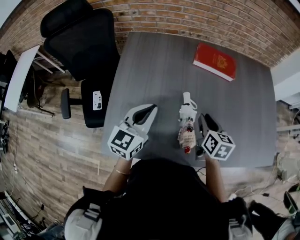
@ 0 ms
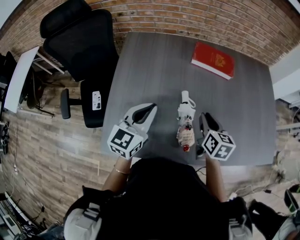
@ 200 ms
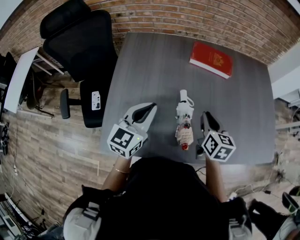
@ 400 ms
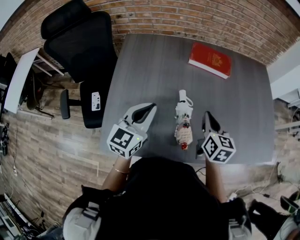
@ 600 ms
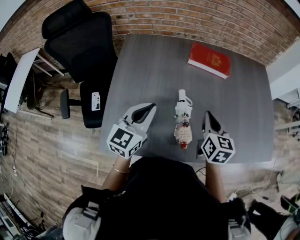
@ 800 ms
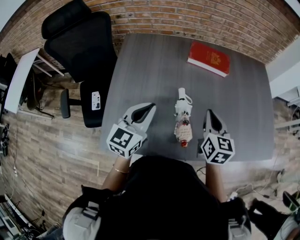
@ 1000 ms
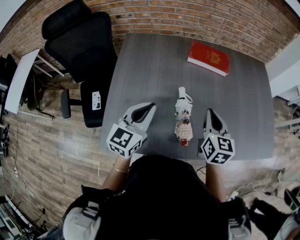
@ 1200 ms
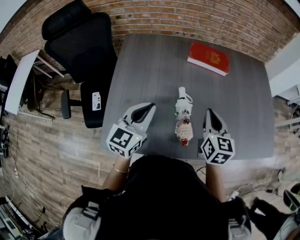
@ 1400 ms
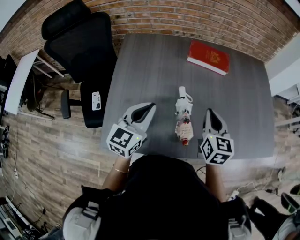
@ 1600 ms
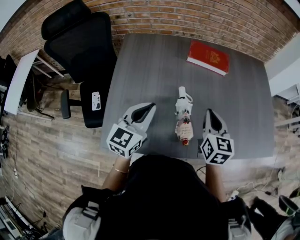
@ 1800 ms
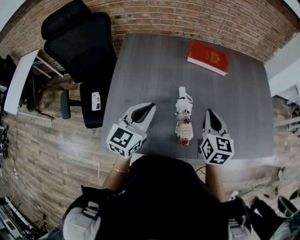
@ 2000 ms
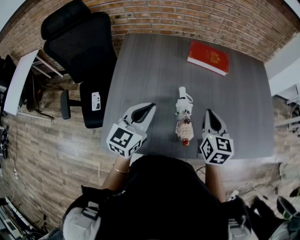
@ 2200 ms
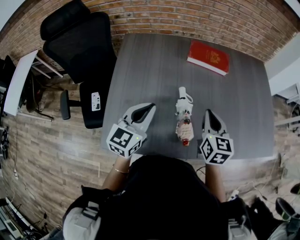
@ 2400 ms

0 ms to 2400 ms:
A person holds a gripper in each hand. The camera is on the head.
0 ms to 1200 ms: The right gripper heads upward, covering some 10 cm.
1200 ms to 2400 ms: Both grippers stay about where they are.

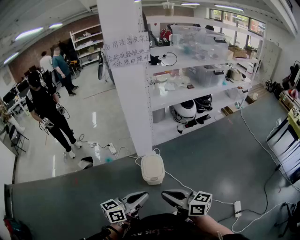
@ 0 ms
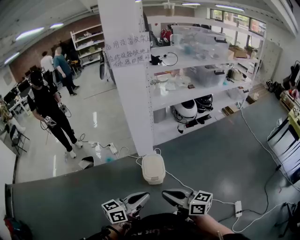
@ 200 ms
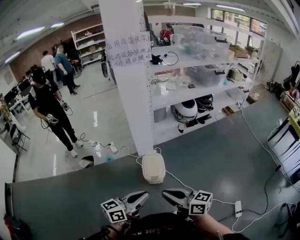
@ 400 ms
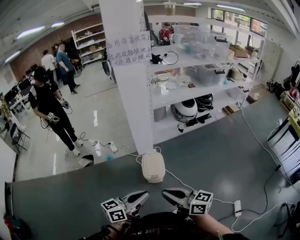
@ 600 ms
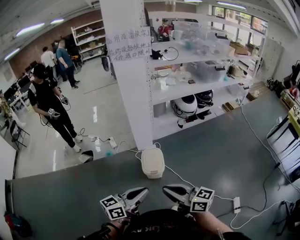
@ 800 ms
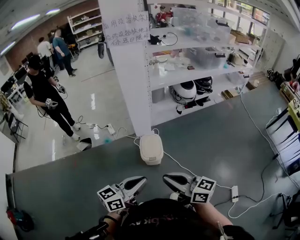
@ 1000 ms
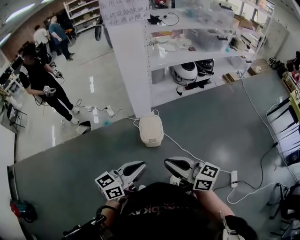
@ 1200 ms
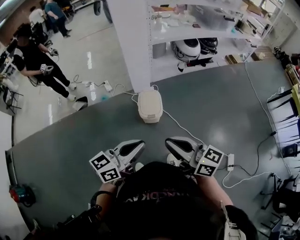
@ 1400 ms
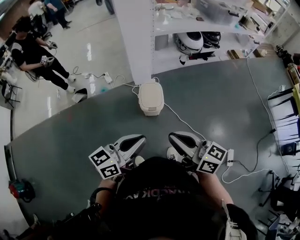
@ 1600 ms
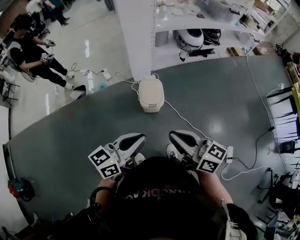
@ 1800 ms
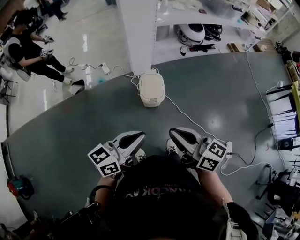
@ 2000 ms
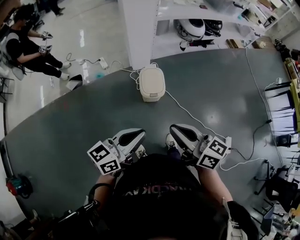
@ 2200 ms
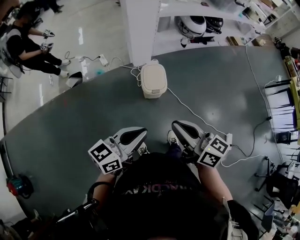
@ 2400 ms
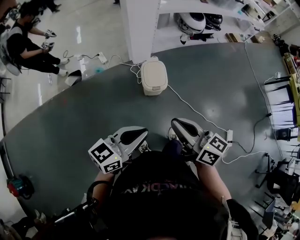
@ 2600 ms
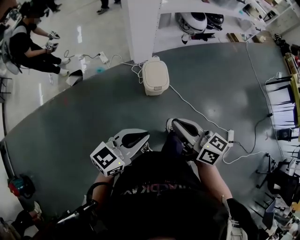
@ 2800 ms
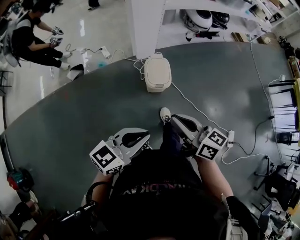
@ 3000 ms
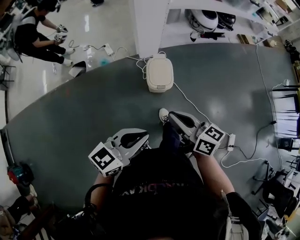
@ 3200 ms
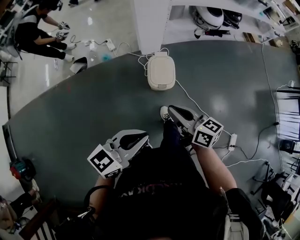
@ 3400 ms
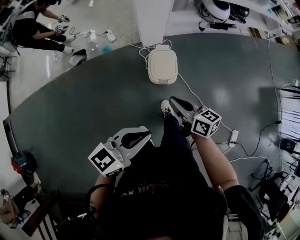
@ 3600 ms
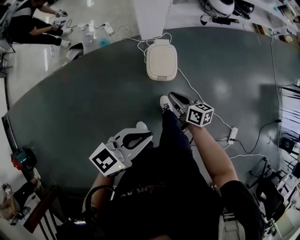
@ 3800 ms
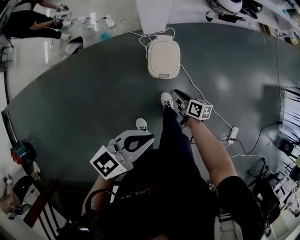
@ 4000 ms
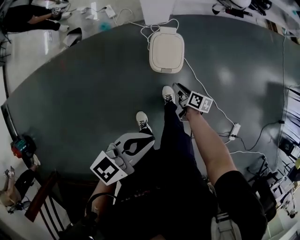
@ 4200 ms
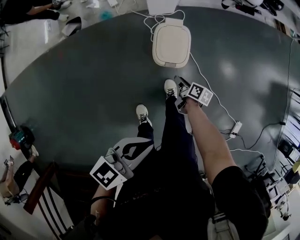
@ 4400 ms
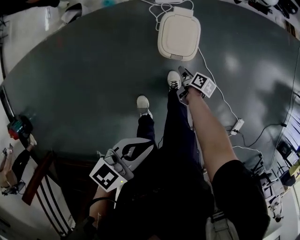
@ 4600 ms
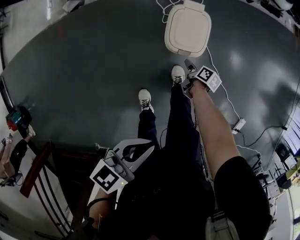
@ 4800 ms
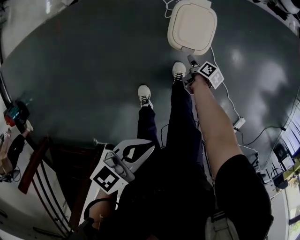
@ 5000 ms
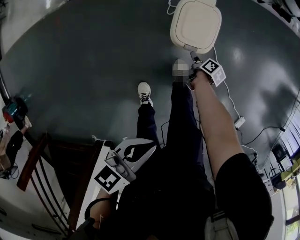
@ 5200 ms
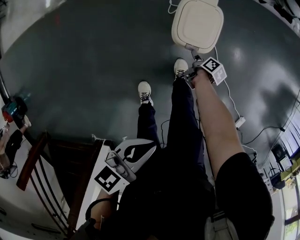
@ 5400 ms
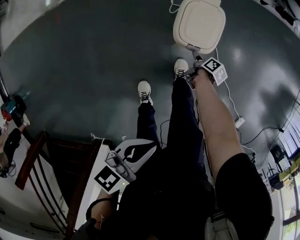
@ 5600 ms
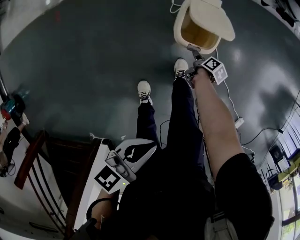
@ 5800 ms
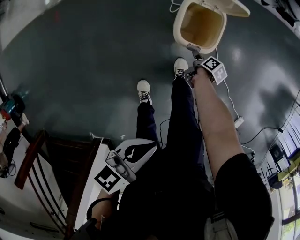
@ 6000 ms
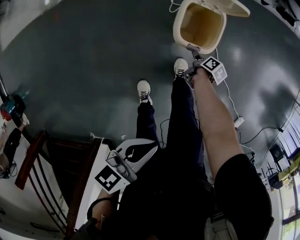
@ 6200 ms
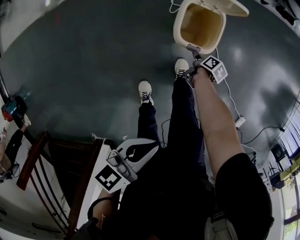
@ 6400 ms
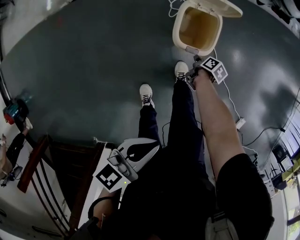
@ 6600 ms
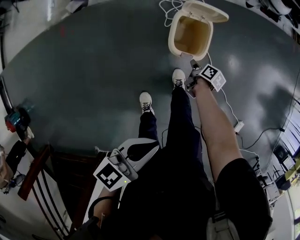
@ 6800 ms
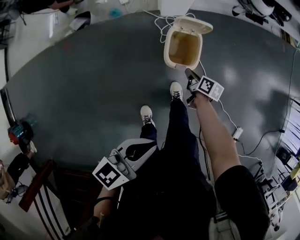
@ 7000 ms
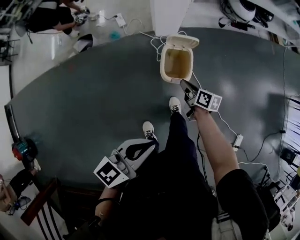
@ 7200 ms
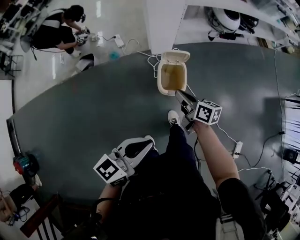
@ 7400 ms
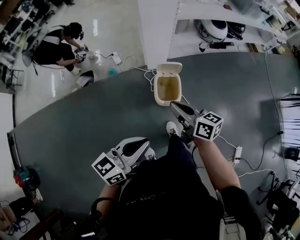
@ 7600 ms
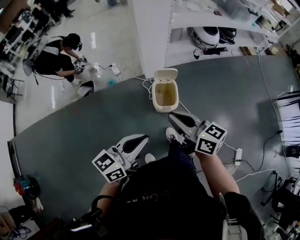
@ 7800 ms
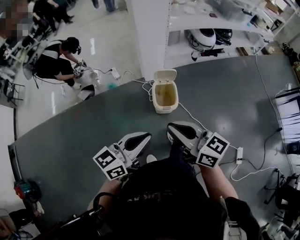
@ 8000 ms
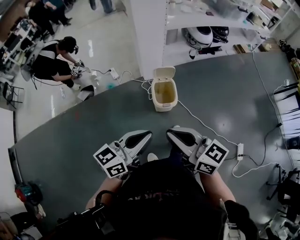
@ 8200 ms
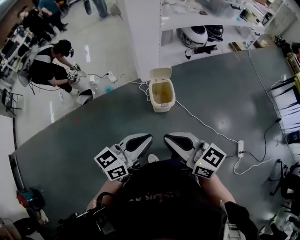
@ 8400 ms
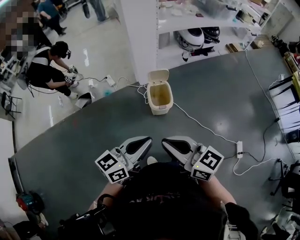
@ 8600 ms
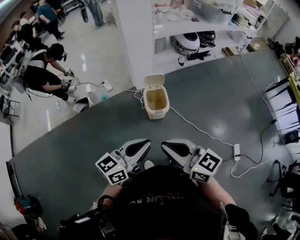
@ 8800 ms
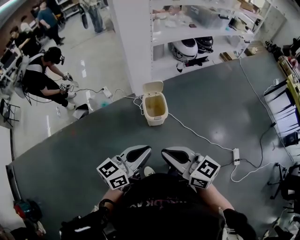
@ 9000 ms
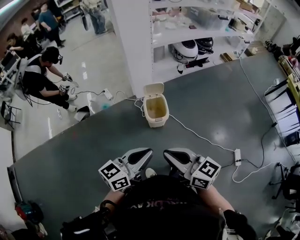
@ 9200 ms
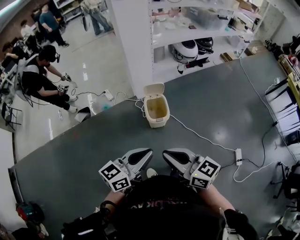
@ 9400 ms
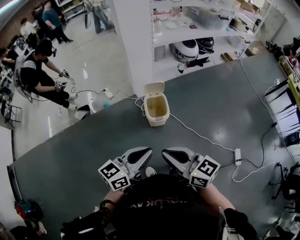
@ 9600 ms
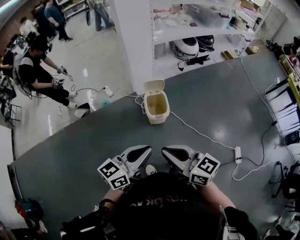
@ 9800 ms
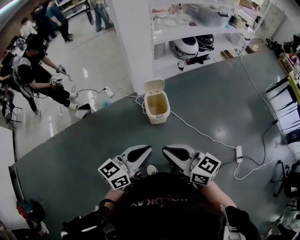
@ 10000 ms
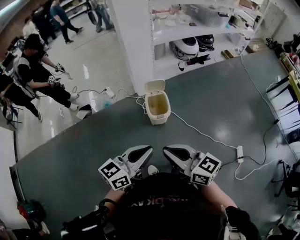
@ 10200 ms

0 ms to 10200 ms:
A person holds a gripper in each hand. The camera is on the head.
0 ms to 1400 ms: There are only small adjustments of the grippers.
1400 ms to 3000 ms: The two grippers go approximately 10 cm to the left and downward.
3000 ms to 4400 ms: The left gripper goes approximately 20 cm forward and downward, and swivels about 20 degrees, while the right gripper goes some 50 cm downward and forward, points its fingers roughly 40 degrees further downward, and opens.
4400 ms to 5800 ms: The left gripper shifts some 10 cm downward. Meanwhile the right gripper shifts about 15 cm downward, and rotates roughly 20 degrees.
5800 ms to 7200 ms: The right gripper is displaced upward by approximately 30 cm, angles its fingers upward, by about 30 degrees, and closes its fingers, while the left gripper heads upward, covering some 15 cm, and turns by about 20 degrees.
7200 ms to 8800 ms: The right gripper heads upward and backward, covering approximately 50 cm, and rolls counterclockwise, seen from behind, by some 40 degrees. Meanwhile the left gripper moves backward and upward, some 15 cm.
8800 ms to 10200 ms: The grippers make only small movements.

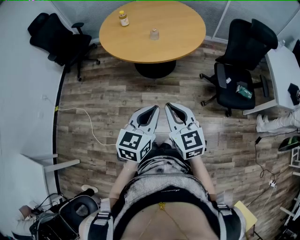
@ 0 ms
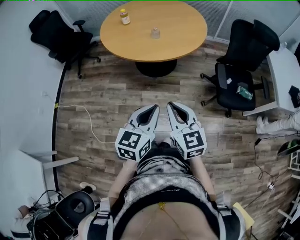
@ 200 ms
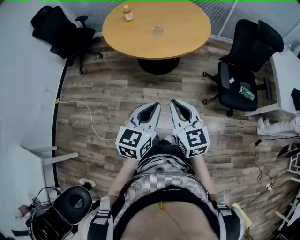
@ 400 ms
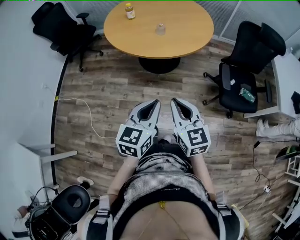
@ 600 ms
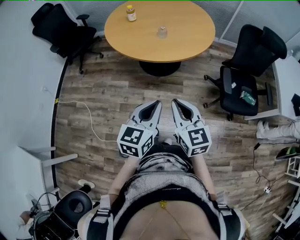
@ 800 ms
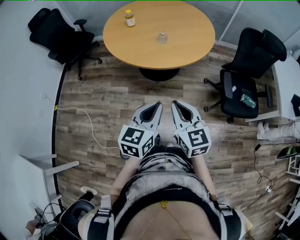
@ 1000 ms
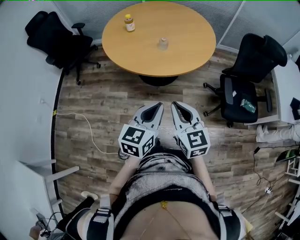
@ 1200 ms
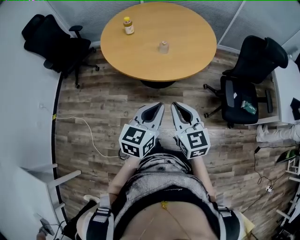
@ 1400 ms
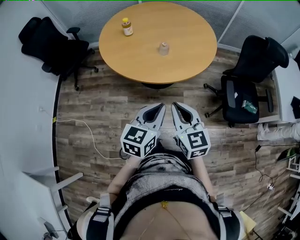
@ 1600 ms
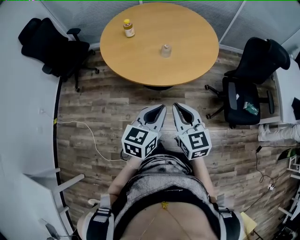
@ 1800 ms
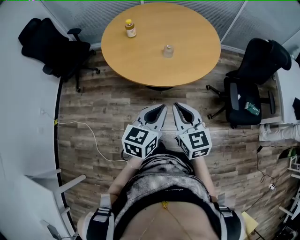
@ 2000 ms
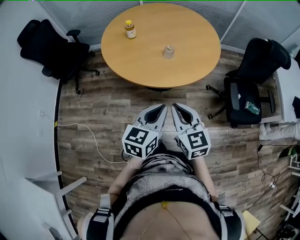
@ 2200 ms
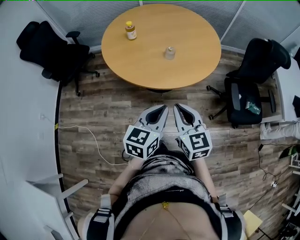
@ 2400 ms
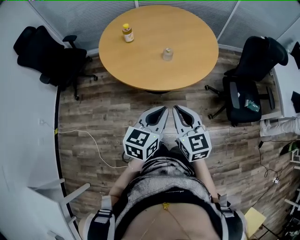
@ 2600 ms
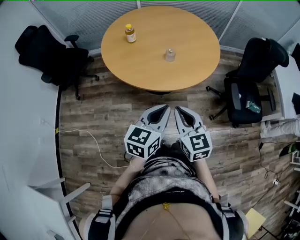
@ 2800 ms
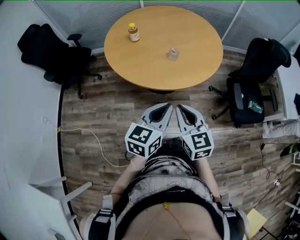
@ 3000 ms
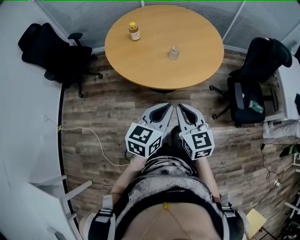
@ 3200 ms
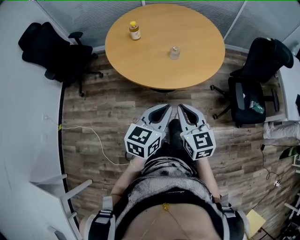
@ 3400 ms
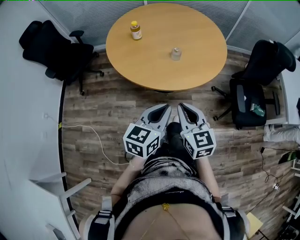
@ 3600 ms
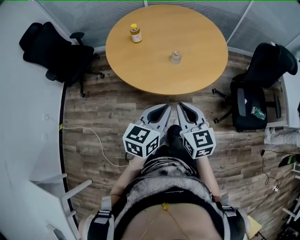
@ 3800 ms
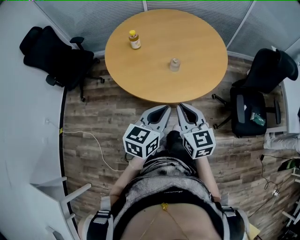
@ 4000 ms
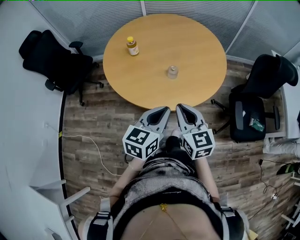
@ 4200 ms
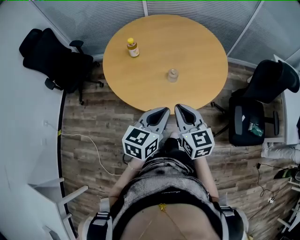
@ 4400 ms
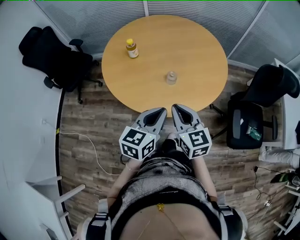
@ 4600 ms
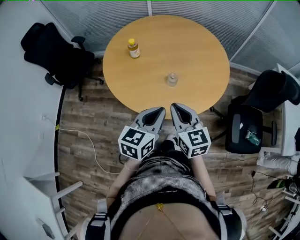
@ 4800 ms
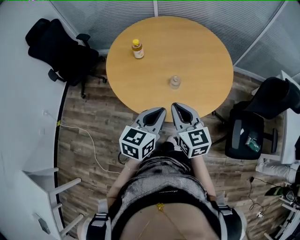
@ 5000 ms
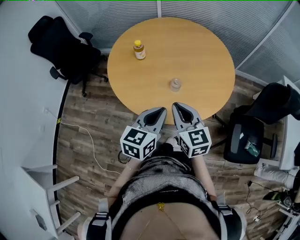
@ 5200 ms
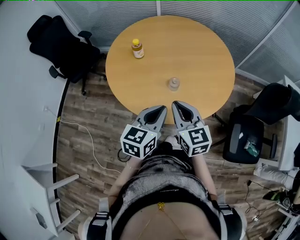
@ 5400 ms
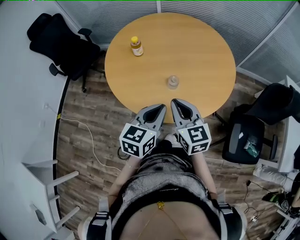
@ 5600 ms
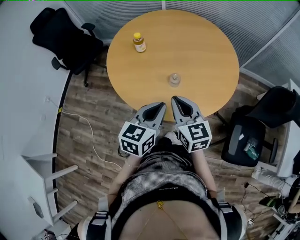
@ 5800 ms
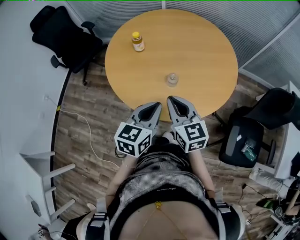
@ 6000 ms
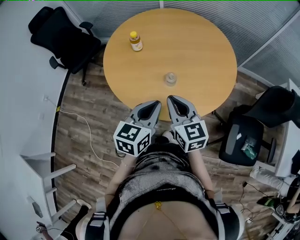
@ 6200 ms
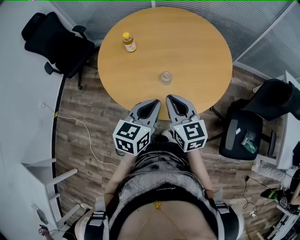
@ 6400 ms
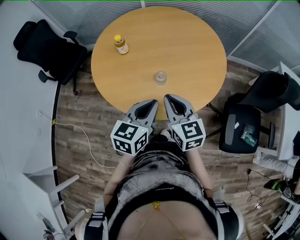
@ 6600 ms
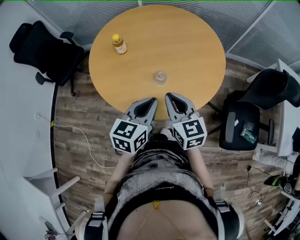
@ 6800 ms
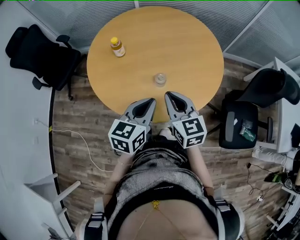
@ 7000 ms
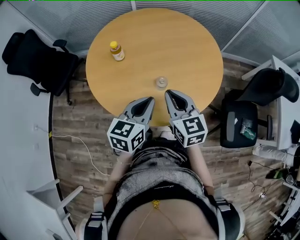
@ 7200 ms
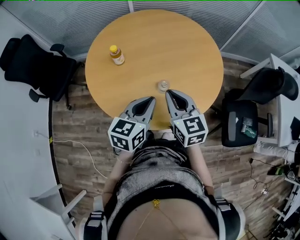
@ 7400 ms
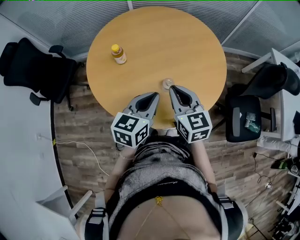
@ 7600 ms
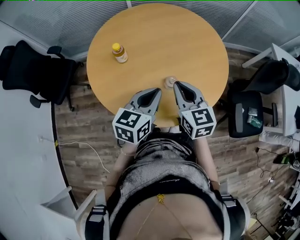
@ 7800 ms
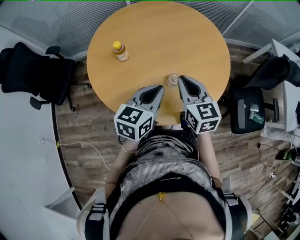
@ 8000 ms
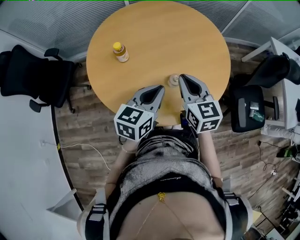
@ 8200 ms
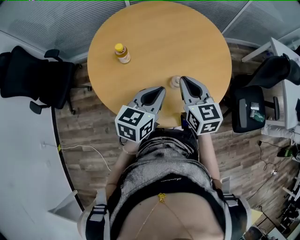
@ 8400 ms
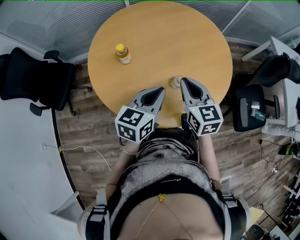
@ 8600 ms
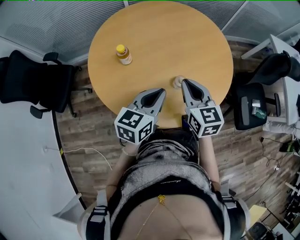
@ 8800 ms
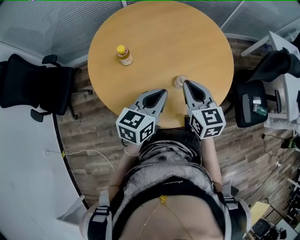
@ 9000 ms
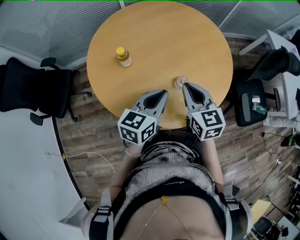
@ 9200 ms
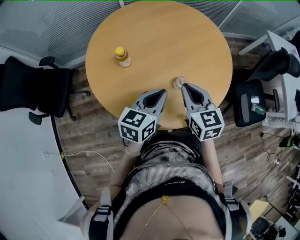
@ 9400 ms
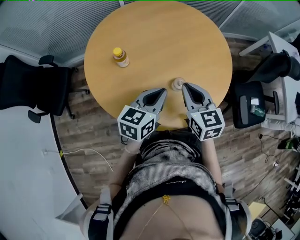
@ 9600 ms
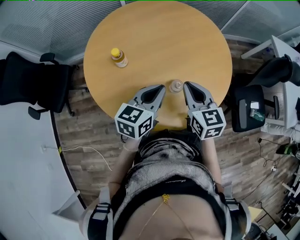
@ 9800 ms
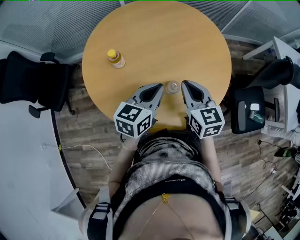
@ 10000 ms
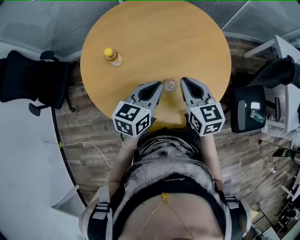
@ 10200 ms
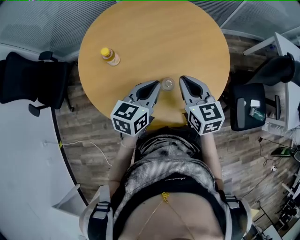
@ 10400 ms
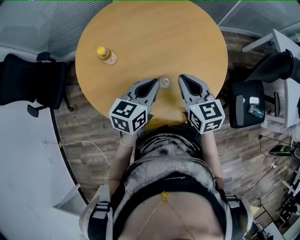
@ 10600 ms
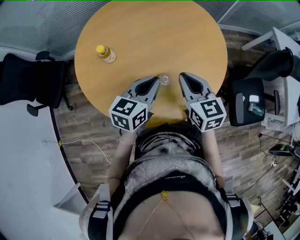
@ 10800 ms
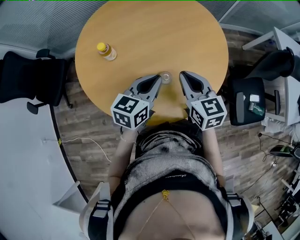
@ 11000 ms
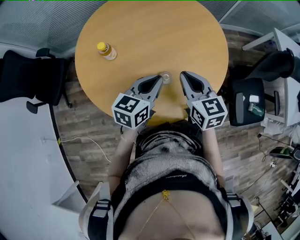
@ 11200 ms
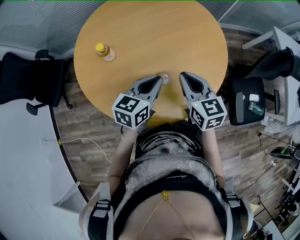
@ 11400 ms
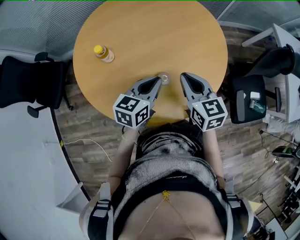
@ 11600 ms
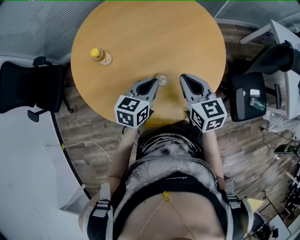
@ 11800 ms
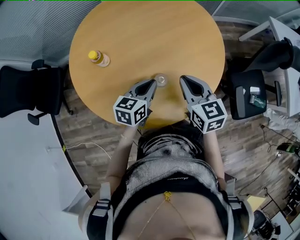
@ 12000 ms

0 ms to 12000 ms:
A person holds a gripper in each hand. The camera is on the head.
0 ms to 1600 ms: Both grippers travel together forward, some 20 cm.
1600 ms to 3000 ms: The grippers both shift to the left by approximately 5 cm.
3000 ms to 4400 ms: Both grippers travel together forward, approximately 15 cm.
4400 ms to 6000 ms: The two grippers go some 10 cm forward.
6000 ms to 7600 ms: The right gripper moves forward, roughly 10 cm. Meanwhile the left gripper heads forward and to the left, covering some 10 cm.
7600 ms to 9000 ms: The left gripper heads to the left, covering approximately 5 cm.
9000 ms to 10400 ms: The left gripper heads forward and to the right, covering roughly 10 cm; the right gripper goes roughly 10 cm to the right and forward.
10400 ms to 12000 ms: The left gripper moves downward, roughly 10 cm.
